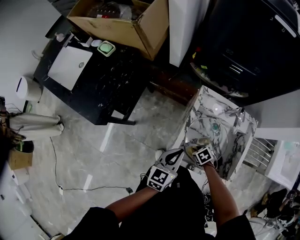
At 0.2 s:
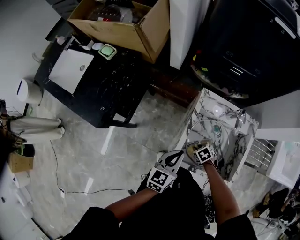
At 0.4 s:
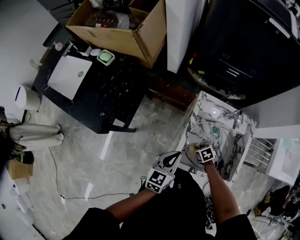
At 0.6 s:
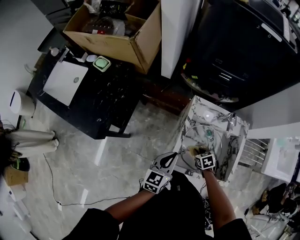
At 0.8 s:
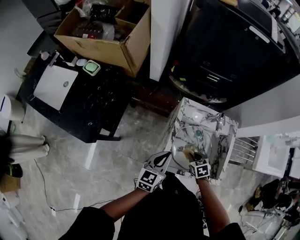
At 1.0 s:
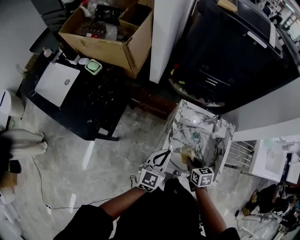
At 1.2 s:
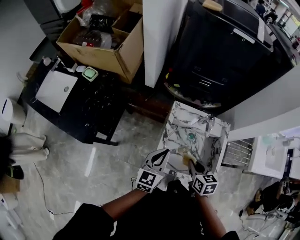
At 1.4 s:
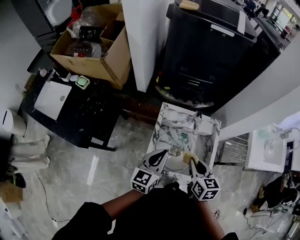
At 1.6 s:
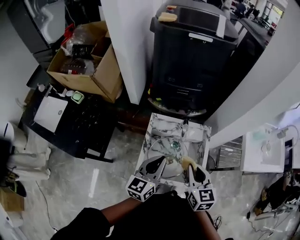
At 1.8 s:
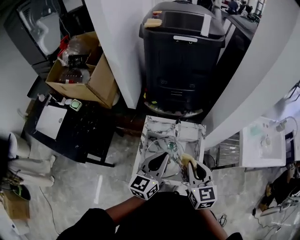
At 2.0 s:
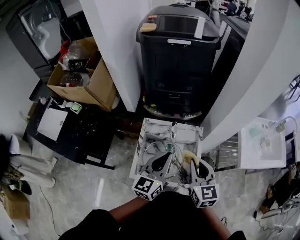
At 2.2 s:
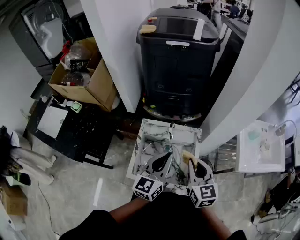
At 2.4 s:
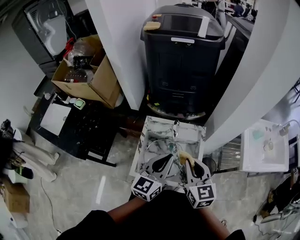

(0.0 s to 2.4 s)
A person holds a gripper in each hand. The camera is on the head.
0.0 s - 1.2 s: The right gripper shifts approximately 25 cm upward, and tilts its fingers roughly 30 degrees upward; the left gripper is displaced upward by some 10 cm.
1.2 s - 2.4 s: The left gripper goes approximately 25 cm to the right and upward; the right gripper shifts approximately 25 cm upward and to the right, and turns by some 30 degrees.

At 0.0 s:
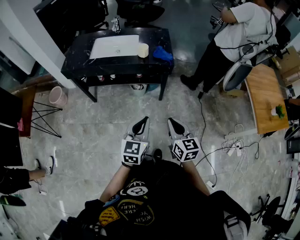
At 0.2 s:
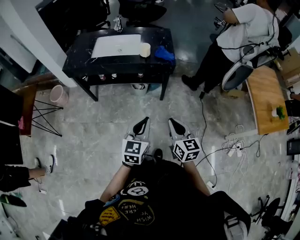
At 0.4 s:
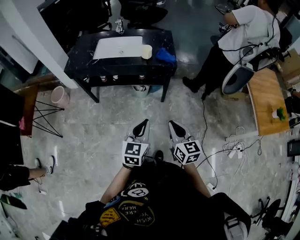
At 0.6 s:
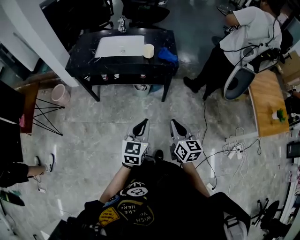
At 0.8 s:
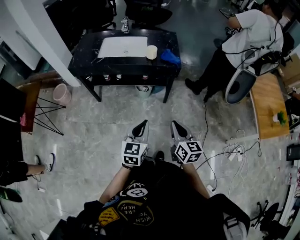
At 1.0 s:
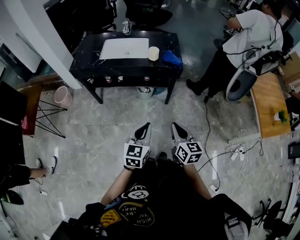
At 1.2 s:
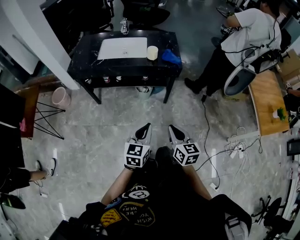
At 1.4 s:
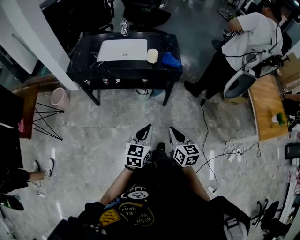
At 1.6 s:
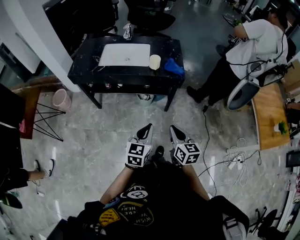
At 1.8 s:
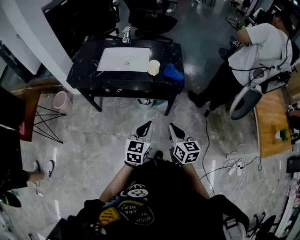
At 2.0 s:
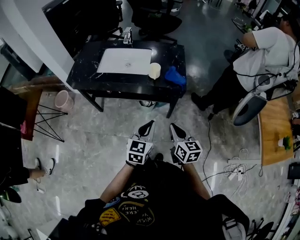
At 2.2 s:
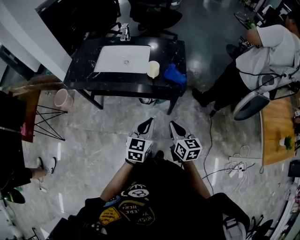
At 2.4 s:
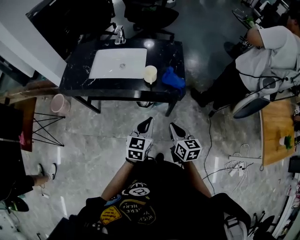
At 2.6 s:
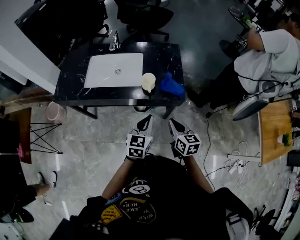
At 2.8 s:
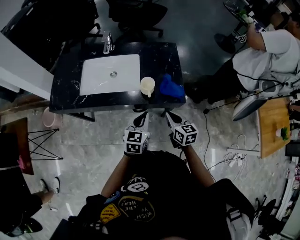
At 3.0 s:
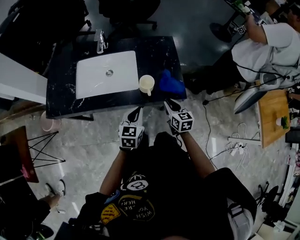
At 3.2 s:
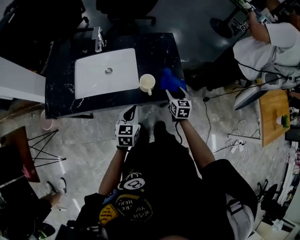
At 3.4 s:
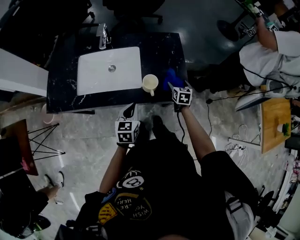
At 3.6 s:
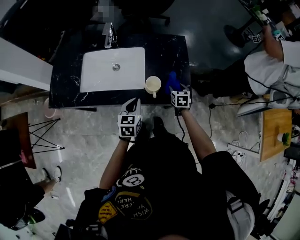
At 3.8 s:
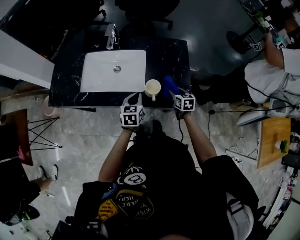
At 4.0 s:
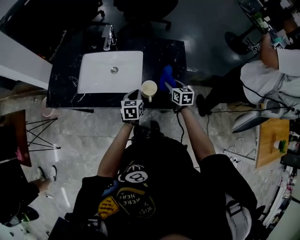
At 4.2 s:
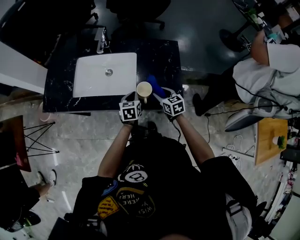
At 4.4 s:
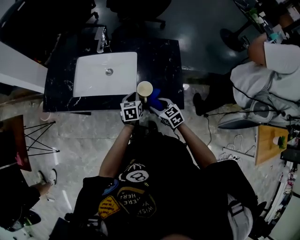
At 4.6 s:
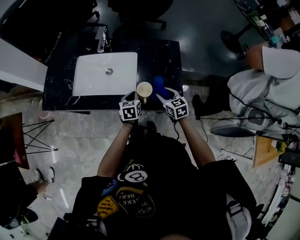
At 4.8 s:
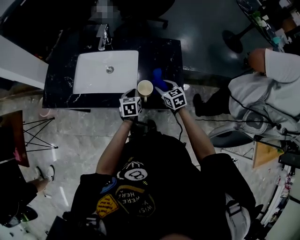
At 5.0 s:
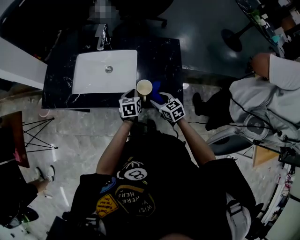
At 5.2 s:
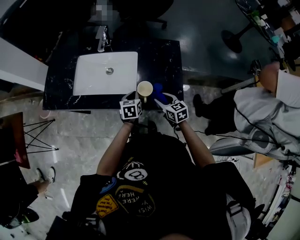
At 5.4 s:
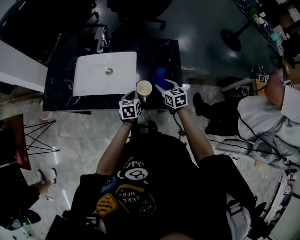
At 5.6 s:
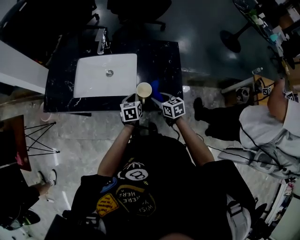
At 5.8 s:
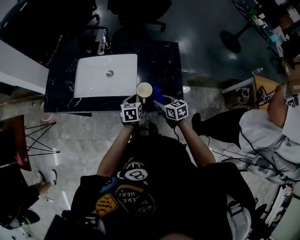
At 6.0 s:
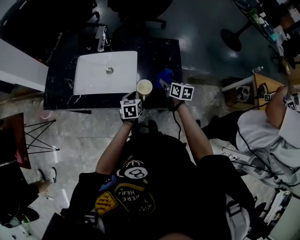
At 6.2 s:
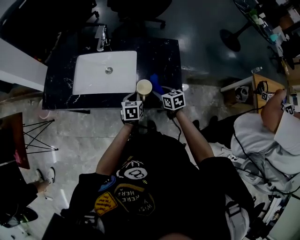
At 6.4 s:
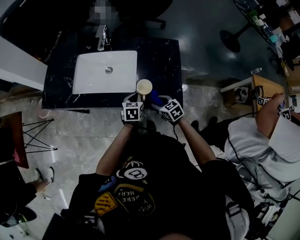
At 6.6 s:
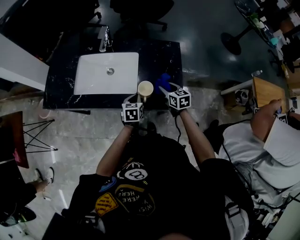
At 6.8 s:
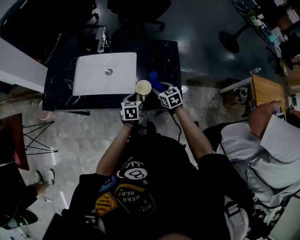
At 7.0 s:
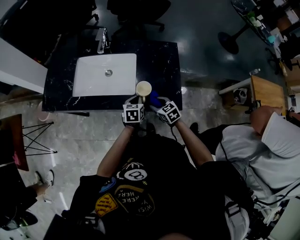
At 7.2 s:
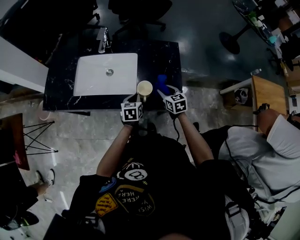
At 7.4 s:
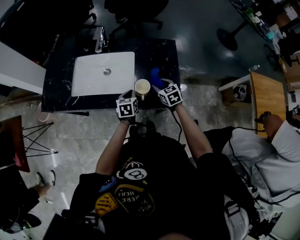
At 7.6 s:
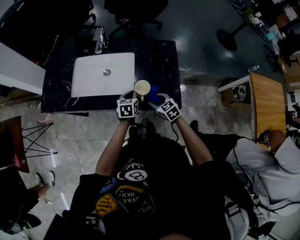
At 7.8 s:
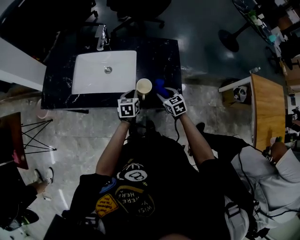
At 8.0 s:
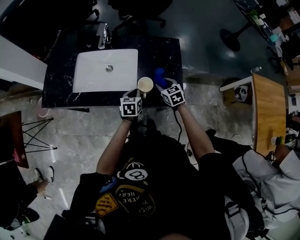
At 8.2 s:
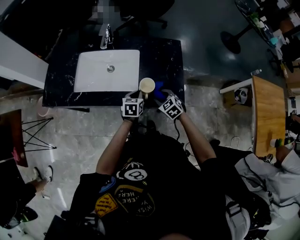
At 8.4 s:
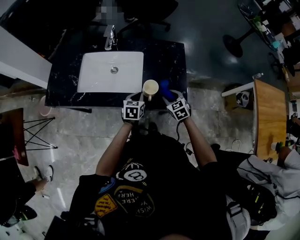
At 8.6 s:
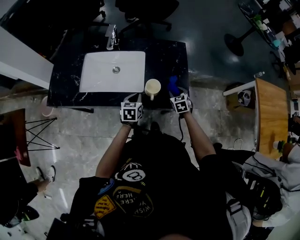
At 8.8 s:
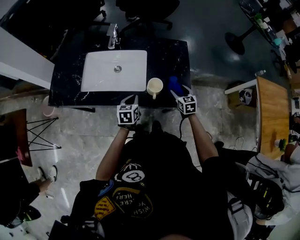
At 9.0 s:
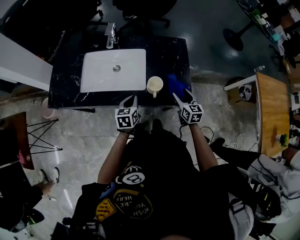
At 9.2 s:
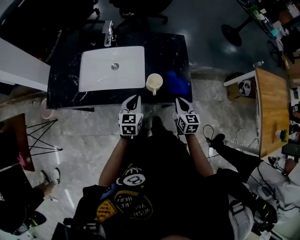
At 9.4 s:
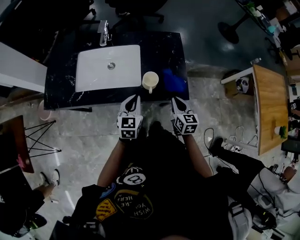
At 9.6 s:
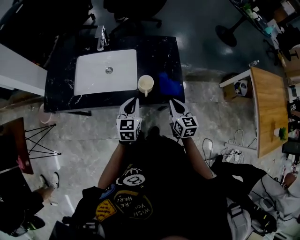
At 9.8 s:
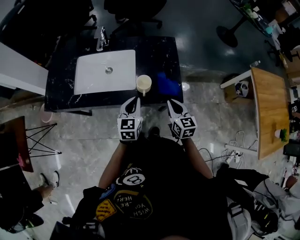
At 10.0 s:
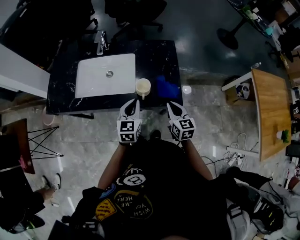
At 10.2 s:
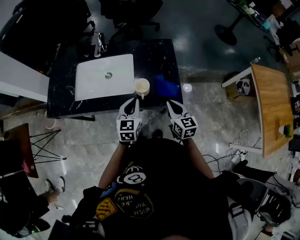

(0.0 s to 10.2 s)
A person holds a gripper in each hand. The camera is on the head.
0.0 s - 1.4 s: The two grippers go about 5 cm to the left.
1.4 s - 3.0 s: The two grippers travel together, forward, roughly 50 cm.
3.0 s - 4.4 s: The left gripper ends up roughly 15 cm from where it was, and turns by roughly 20 degrees; the right gripper swivels approximately 30 degrees, and opens, then closes again.
4.4 s - 5.8 s: The right gripper goes forward and backward, approximately 10 cm each way, reversing 3 times.
5.8 s - 7.2 s: The right gripper moves forward and backward over roughly 10 cm, changing direction 4 times.
7.2 s - 8.8 s: The left gripper is displaced to the left by about 5 cm. Meanwhile the right gripper moves left and right over about 10 cm, changing direction 3 times, and opens up.
8.8 s - 10.2 s: The left gripper heads upward and to the right, covering roughly 15 cm, and swivels approximately 20 degrees, while the right gripper moves upward and backward, approximately 15 cm, and closes its fingers.

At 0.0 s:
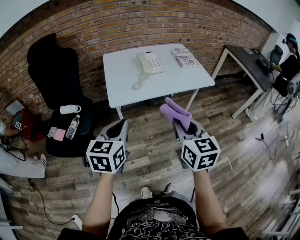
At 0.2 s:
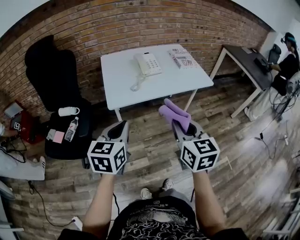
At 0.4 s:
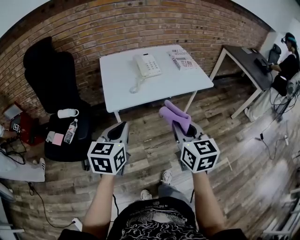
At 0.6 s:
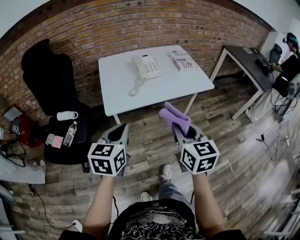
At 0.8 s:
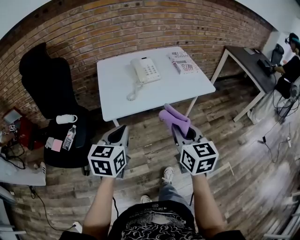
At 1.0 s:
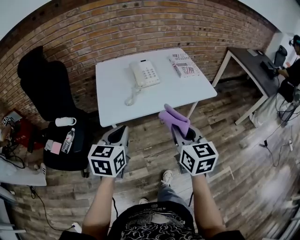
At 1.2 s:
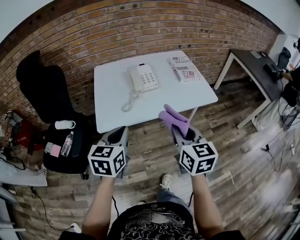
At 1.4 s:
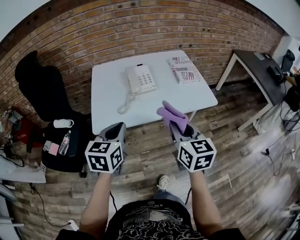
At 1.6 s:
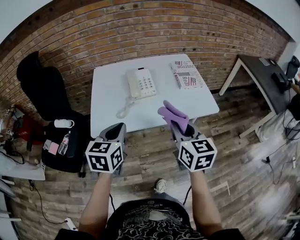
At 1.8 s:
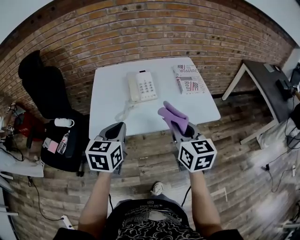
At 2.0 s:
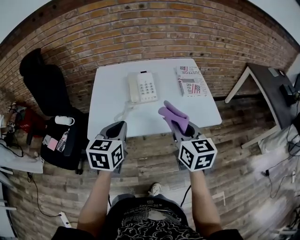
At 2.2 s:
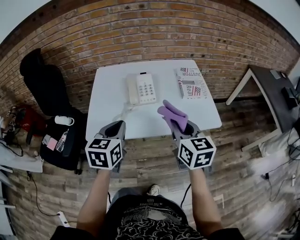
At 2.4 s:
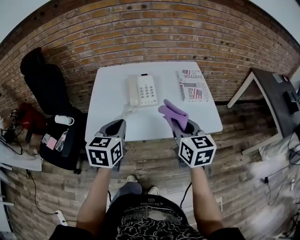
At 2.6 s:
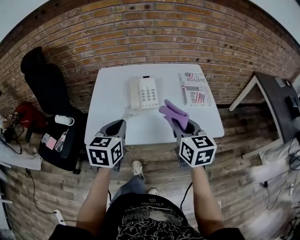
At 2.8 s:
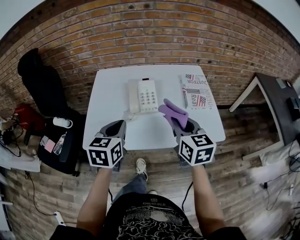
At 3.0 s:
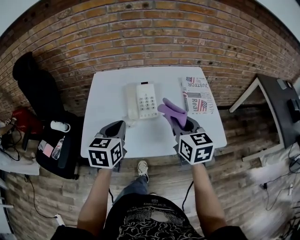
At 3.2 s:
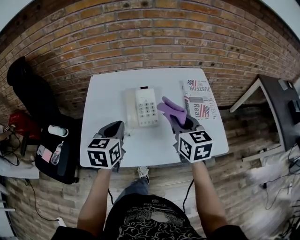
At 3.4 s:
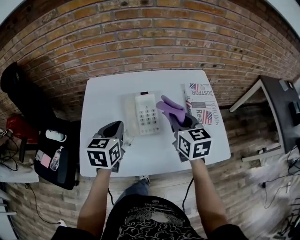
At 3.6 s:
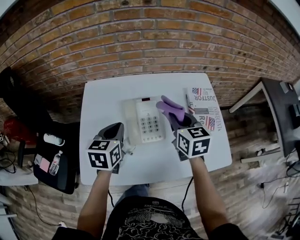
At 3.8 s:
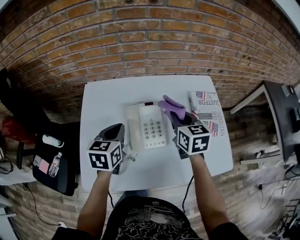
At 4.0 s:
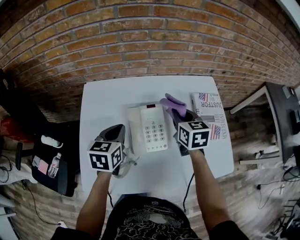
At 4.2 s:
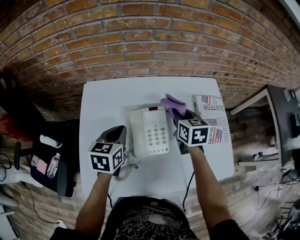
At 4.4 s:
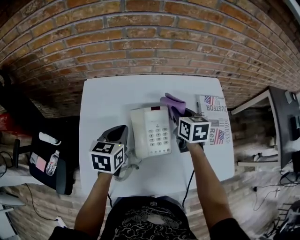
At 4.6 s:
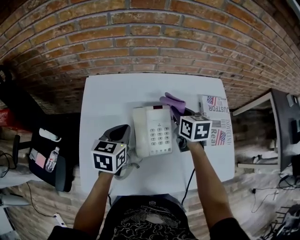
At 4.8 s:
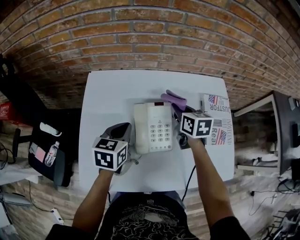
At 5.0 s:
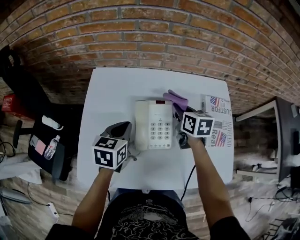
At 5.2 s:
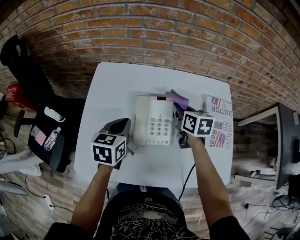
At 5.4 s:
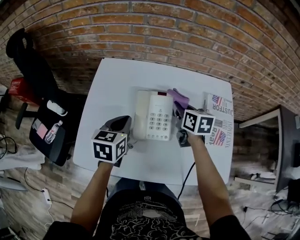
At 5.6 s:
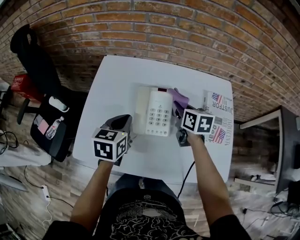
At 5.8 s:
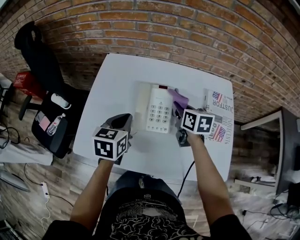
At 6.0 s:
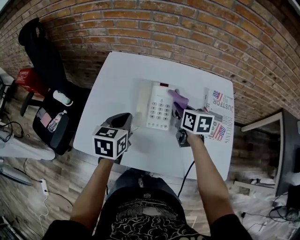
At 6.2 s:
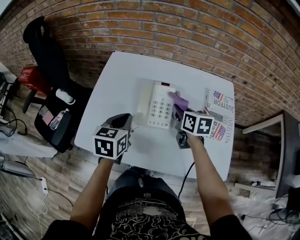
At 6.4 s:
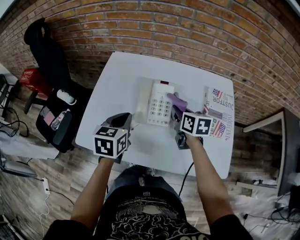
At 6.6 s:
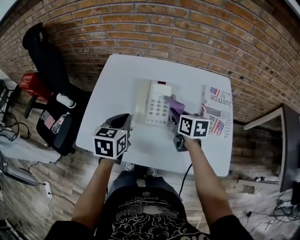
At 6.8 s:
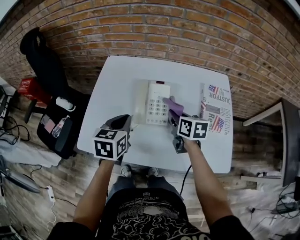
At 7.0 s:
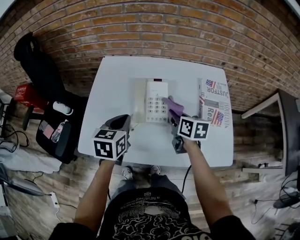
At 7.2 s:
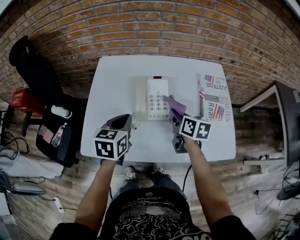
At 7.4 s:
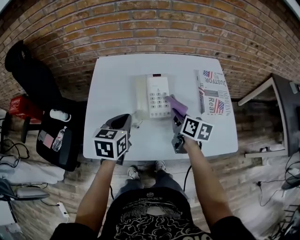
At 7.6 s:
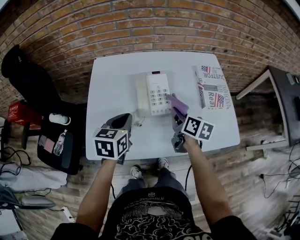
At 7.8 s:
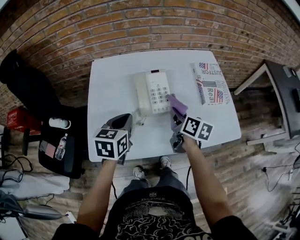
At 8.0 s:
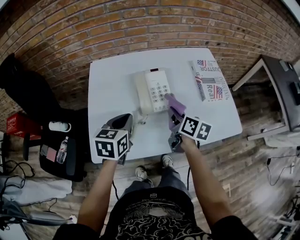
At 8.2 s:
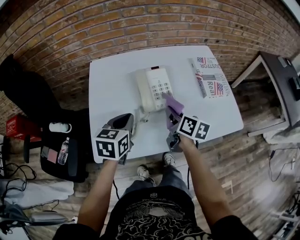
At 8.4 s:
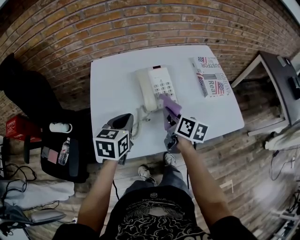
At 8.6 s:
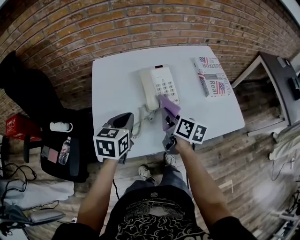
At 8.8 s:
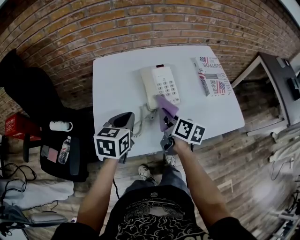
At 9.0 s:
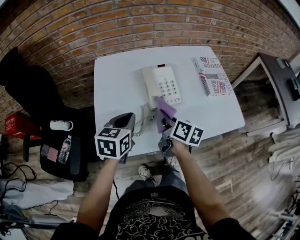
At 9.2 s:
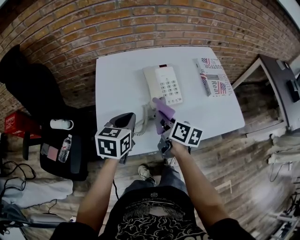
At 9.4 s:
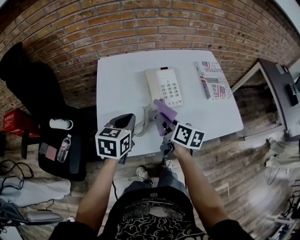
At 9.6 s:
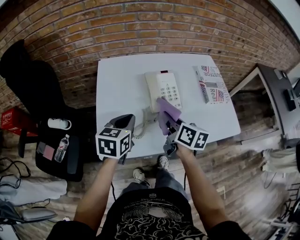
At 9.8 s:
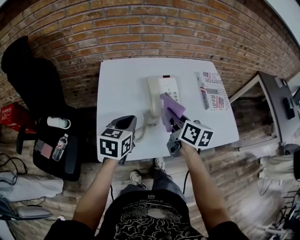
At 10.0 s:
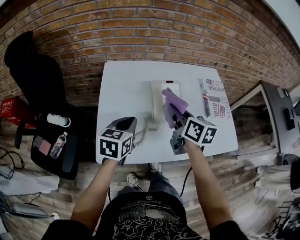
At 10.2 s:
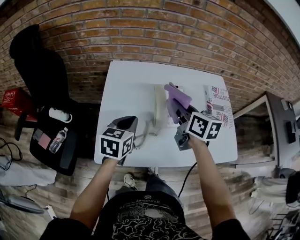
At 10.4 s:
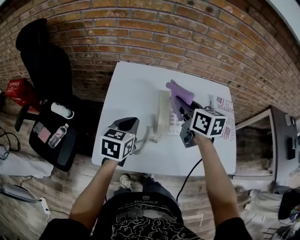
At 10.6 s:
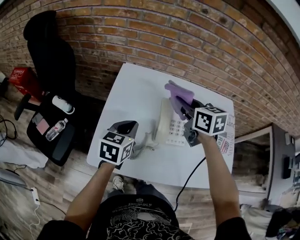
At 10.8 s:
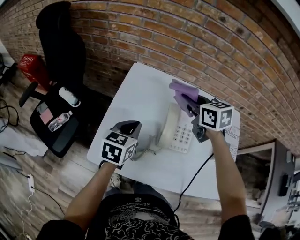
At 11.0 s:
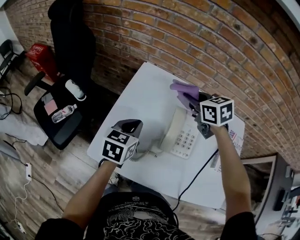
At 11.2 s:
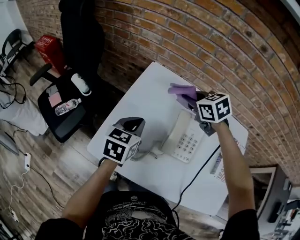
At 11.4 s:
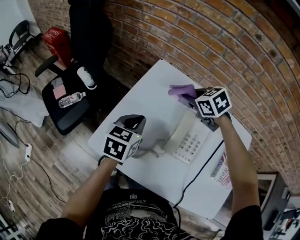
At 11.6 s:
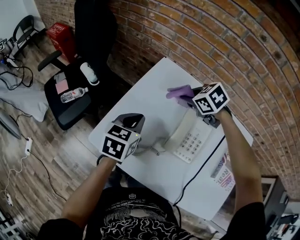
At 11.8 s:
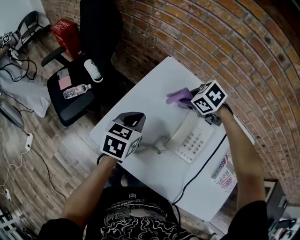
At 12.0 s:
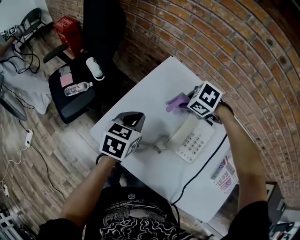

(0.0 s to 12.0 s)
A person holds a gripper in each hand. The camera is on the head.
0.0 s - 1.6 s: Both grippers travel together forward and to the right, some 25 cm.
1.6 s - 3.0 s: Both grippers move forward, approximately 20 cm.
3.0 s - 4.4 s: Both grippers travel together forward, approximately 25 cm.
4.4 s - 6.0 s: The two grippers go approximately 10 cm backward.
6.0 s - 7.6 s: The right gripper heads backward, covering about 10 cm, and rotates approximately 30 degrees.
7.6 s - 9.0 s: The right gripper travels to the left and backward by about 15 cm; the left gripper shifts by about 5 cm.
9.0 s - 10.4 s: The left gripper heads forward, covering approximately 5 cm. The right gripper travels forward and upward by about 20 cm, and rotates about 40 degrees.
10.4 s - 12.0 s: The right gripper moves downward, roughly 15 cm, and tilts its fingers approximately 50 degrees downward. The left gripper moves about 5 cm, and changes its angle by some 30 degrees.
